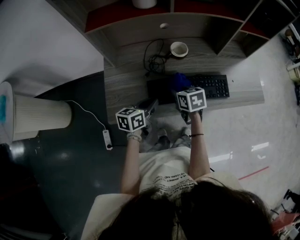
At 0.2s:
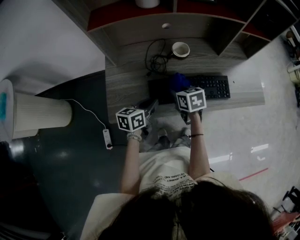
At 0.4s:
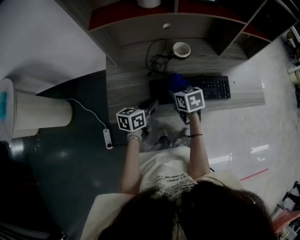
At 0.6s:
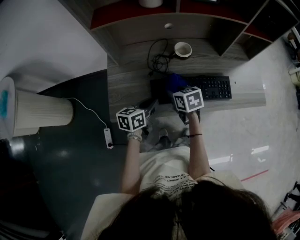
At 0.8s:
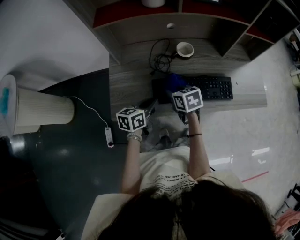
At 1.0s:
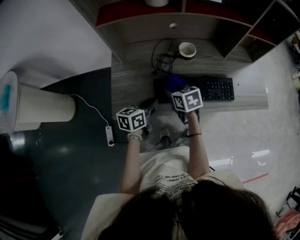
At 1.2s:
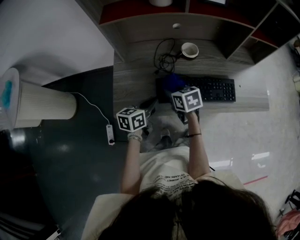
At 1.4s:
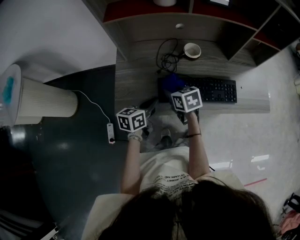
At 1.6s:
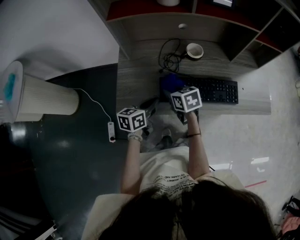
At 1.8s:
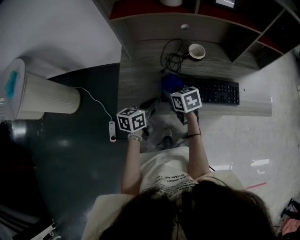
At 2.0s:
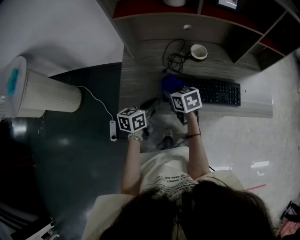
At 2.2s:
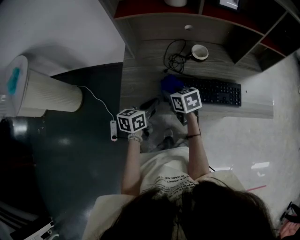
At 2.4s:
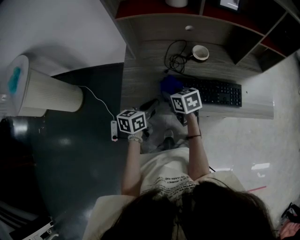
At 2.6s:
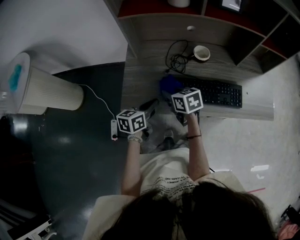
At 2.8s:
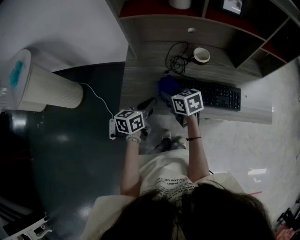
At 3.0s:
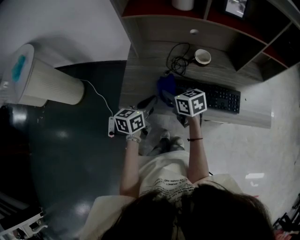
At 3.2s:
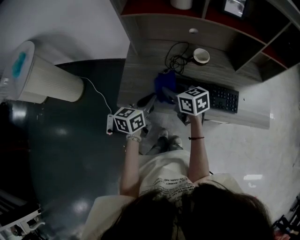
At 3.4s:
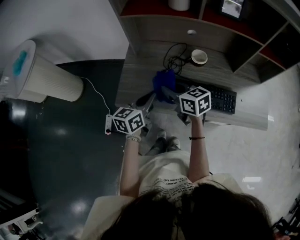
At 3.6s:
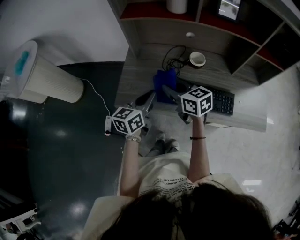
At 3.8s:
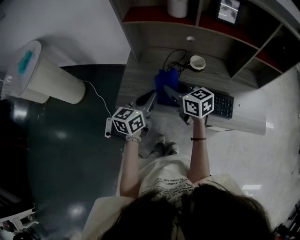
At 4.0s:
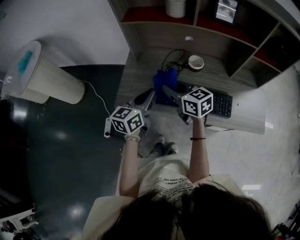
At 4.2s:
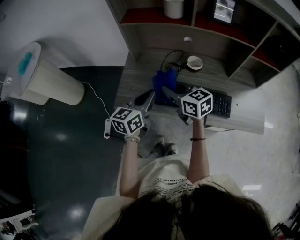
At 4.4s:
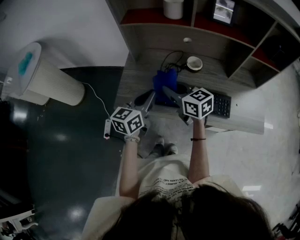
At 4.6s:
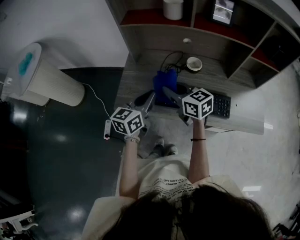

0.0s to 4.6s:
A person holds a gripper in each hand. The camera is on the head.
0.0s to 1.6s: The right gripper heads to the left, covering some 10 cm; the left gripper moves roughly 5 cm.
1.6s to 3.0s: The right gripper moves approximately 5 cm.
3.0s to 4.6s: The grippers both shift upward by roughly 10 cm.

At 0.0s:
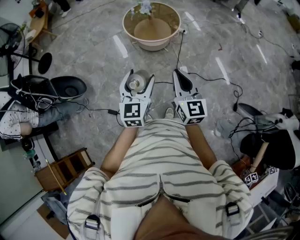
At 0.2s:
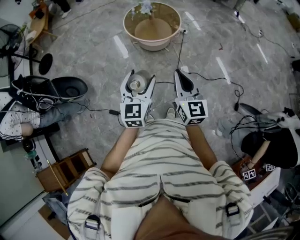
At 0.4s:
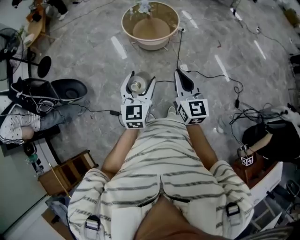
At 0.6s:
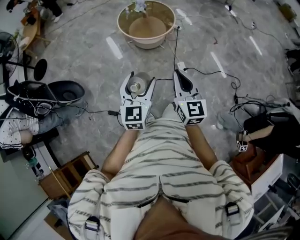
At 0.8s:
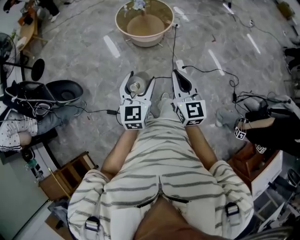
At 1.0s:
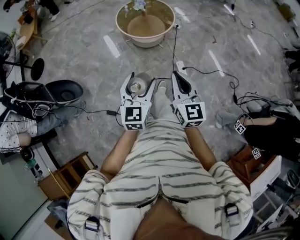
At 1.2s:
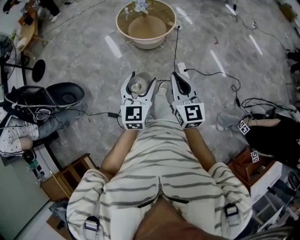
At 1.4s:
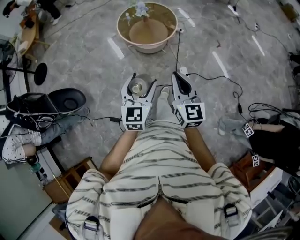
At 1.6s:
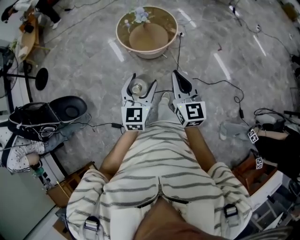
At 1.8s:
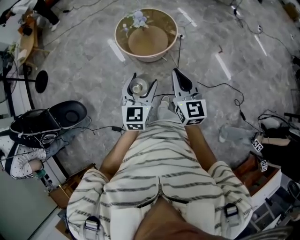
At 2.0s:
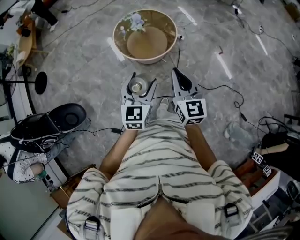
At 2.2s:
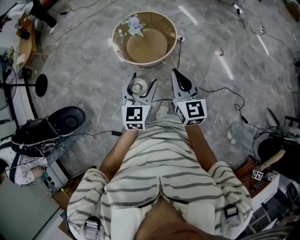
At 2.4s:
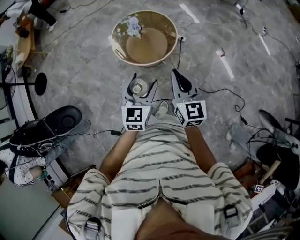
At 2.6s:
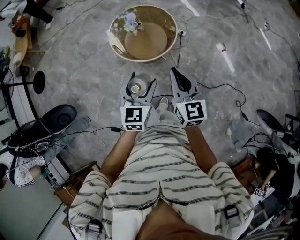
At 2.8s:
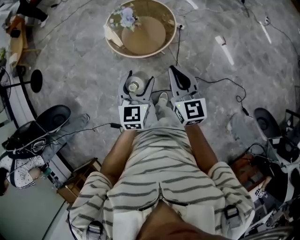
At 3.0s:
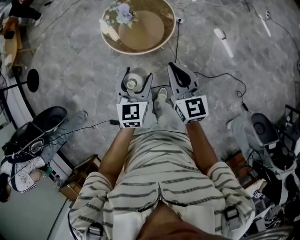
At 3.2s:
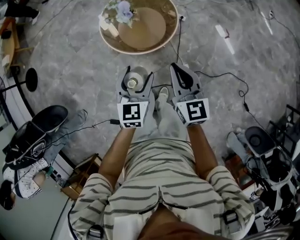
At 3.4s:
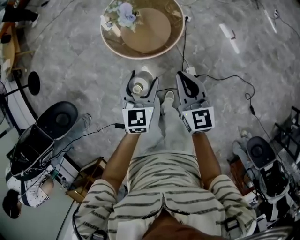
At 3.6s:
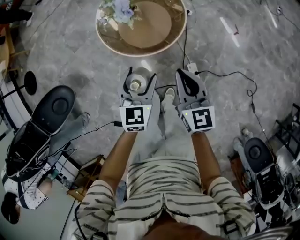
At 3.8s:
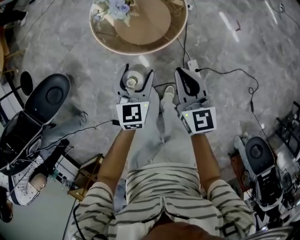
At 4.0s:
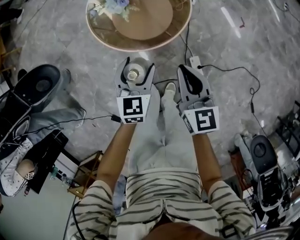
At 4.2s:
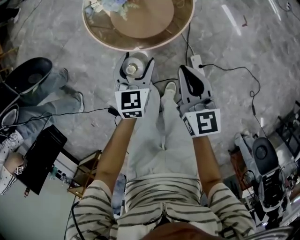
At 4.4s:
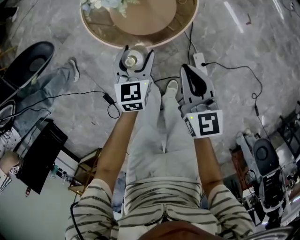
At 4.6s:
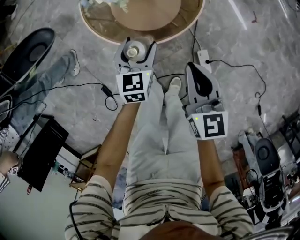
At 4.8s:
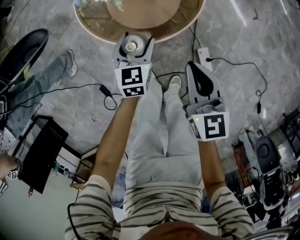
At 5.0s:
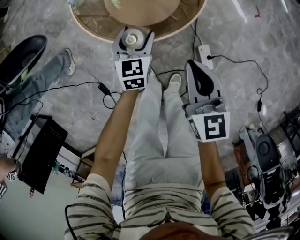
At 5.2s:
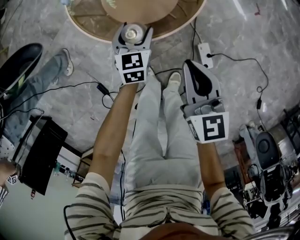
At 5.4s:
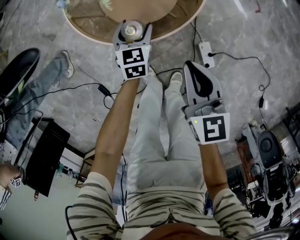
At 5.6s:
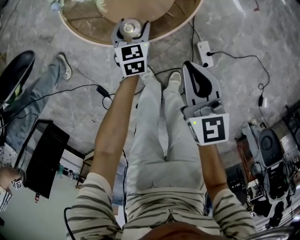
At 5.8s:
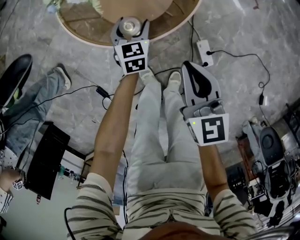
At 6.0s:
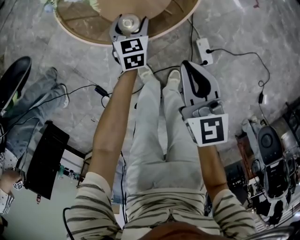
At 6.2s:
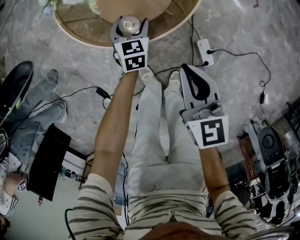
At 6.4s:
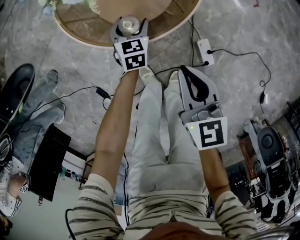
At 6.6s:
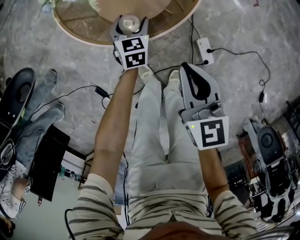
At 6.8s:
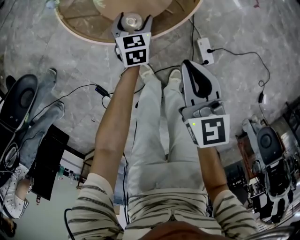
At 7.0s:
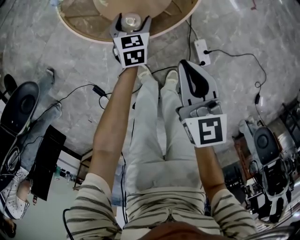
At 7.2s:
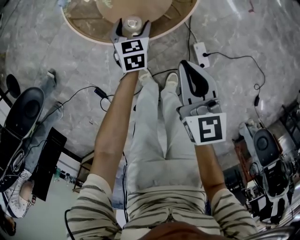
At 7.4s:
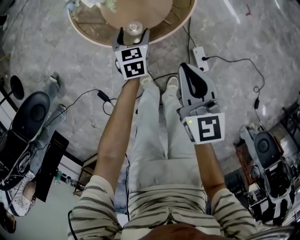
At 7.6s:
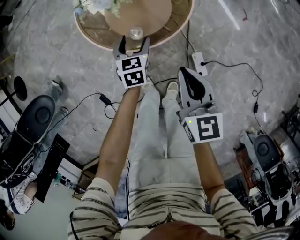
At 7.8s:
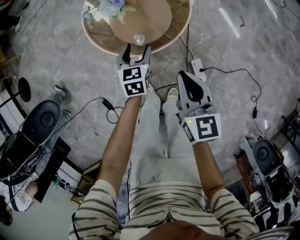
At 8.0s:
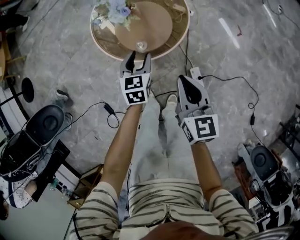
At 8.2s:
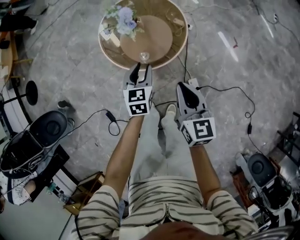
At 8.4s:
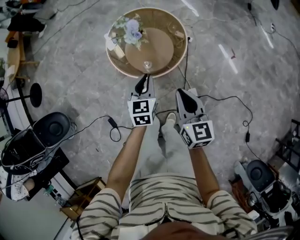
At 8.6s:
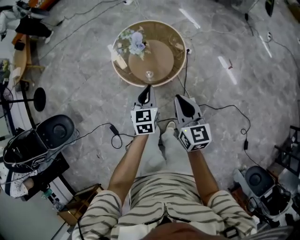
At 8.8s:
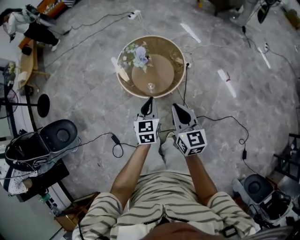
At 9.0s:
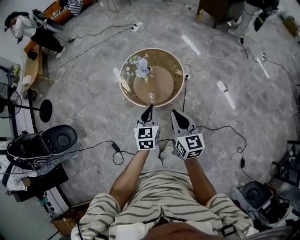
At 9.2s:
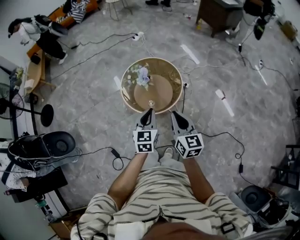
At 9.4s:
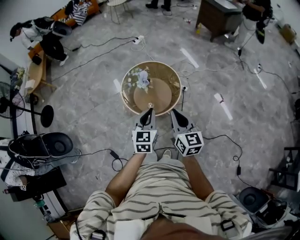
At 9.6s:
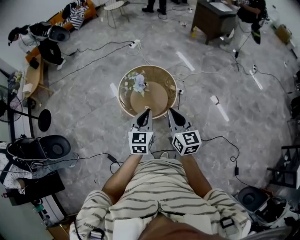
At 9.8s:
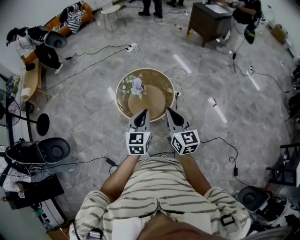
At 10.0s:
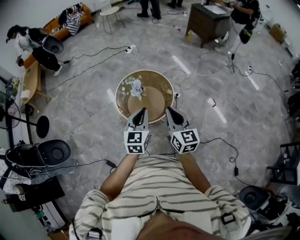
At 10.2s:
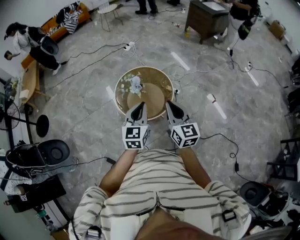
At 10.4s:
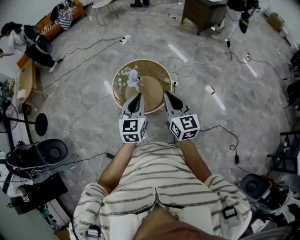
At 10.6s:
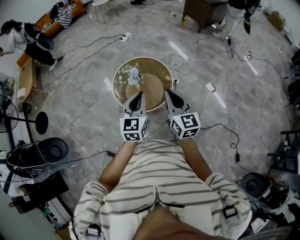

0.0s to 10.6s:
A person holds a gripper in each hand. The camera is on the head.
0.0s to 1.6s: Both grippers travel together forward, some 15 cm.
1.6s to 3.0s: Both grippers travel together forward, roughly 20 cm.
3.0s to 4.6s: The right gripper shifts some 25 cm downward. The left gripper goes roughly 35 cm downward and forward.
4.6s to 6.0s: The right gripper travels downward by about 5 cm. Meanwhile the left gripper goes about 20 cm downward and forward.
6.0s to 7.6s: The two grippers go approximately 10 cm upward.
7.6s to 9.0s: The left gripper moves upward and backward, some 40 cm, and closes up; the right gripper heads upward, covering some 25 cm.
9.0s to 10.6s: The left gripper moves upward, roughly 15 cm, while the right gripper travels upward and forward by about 10 cm.

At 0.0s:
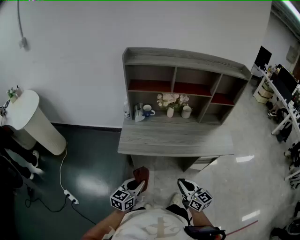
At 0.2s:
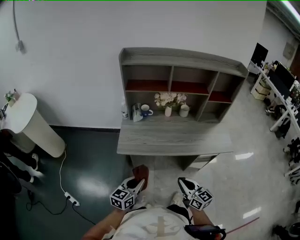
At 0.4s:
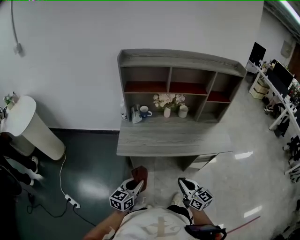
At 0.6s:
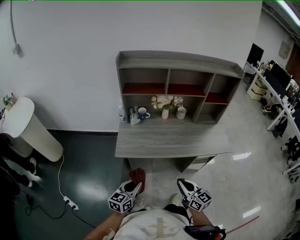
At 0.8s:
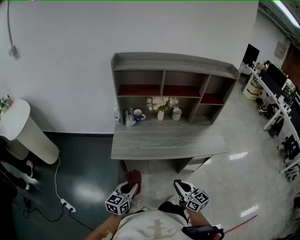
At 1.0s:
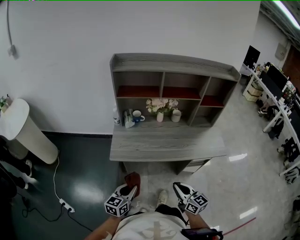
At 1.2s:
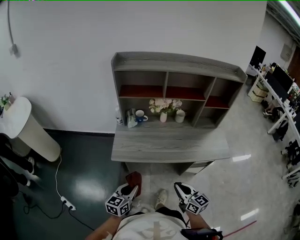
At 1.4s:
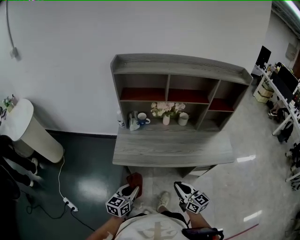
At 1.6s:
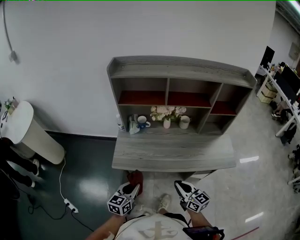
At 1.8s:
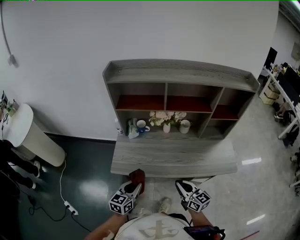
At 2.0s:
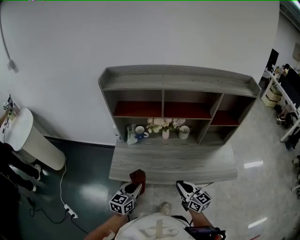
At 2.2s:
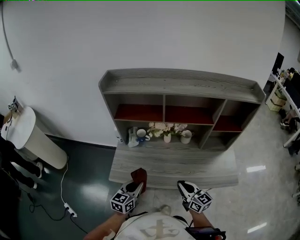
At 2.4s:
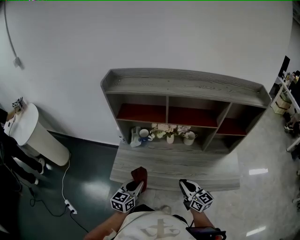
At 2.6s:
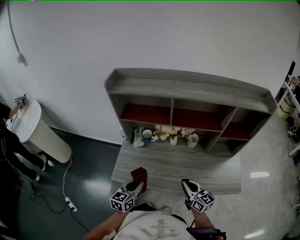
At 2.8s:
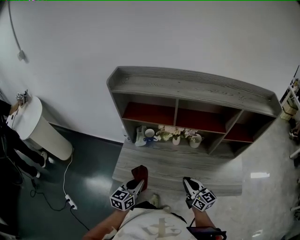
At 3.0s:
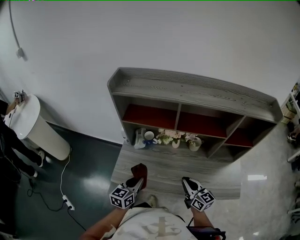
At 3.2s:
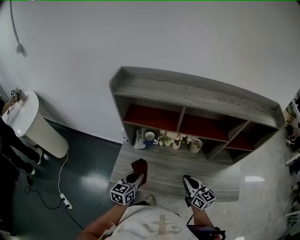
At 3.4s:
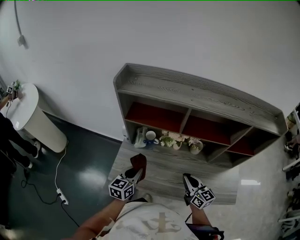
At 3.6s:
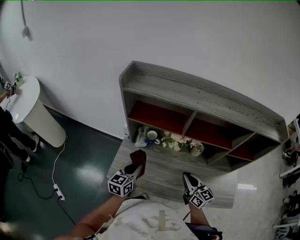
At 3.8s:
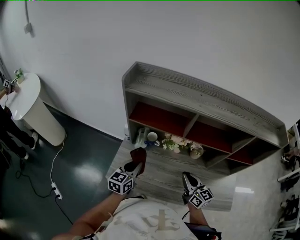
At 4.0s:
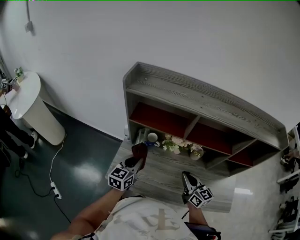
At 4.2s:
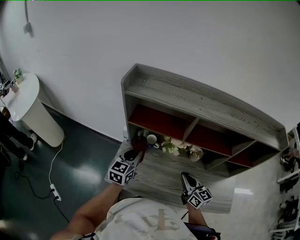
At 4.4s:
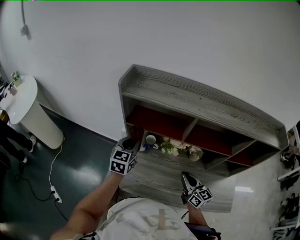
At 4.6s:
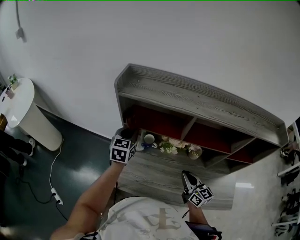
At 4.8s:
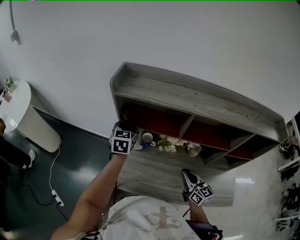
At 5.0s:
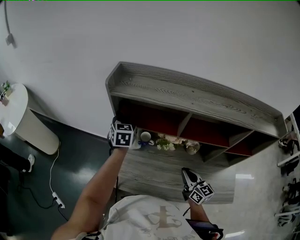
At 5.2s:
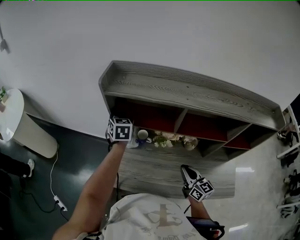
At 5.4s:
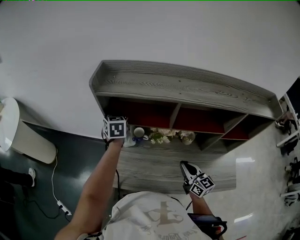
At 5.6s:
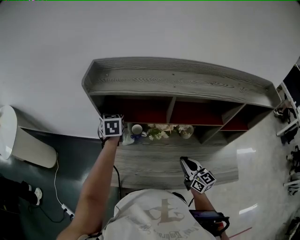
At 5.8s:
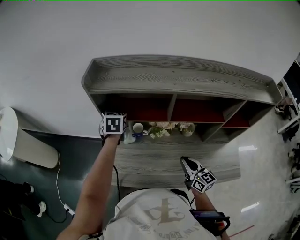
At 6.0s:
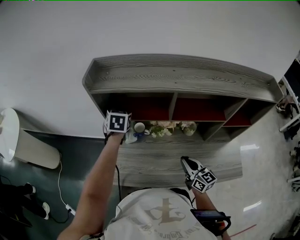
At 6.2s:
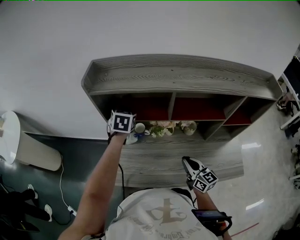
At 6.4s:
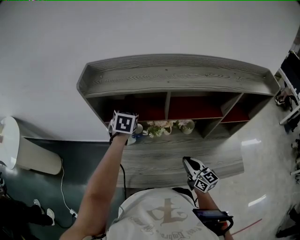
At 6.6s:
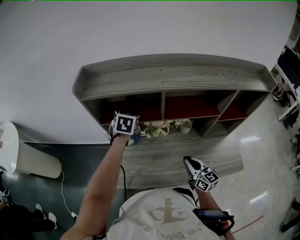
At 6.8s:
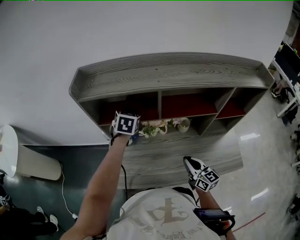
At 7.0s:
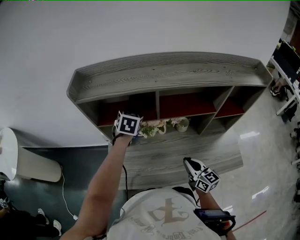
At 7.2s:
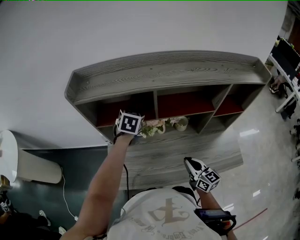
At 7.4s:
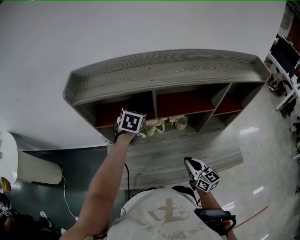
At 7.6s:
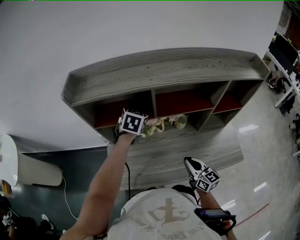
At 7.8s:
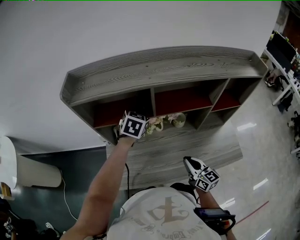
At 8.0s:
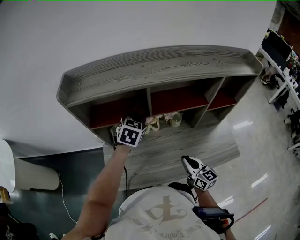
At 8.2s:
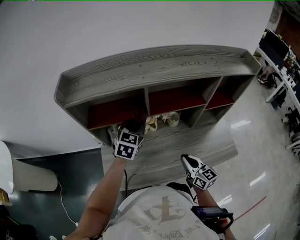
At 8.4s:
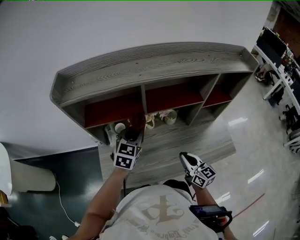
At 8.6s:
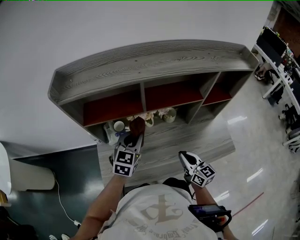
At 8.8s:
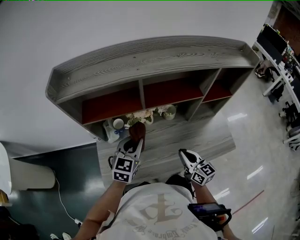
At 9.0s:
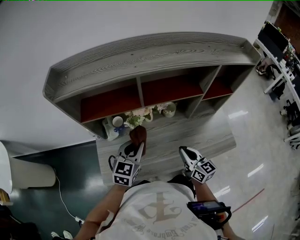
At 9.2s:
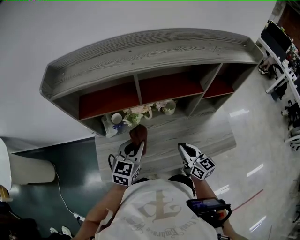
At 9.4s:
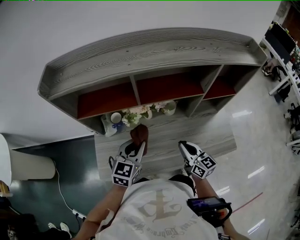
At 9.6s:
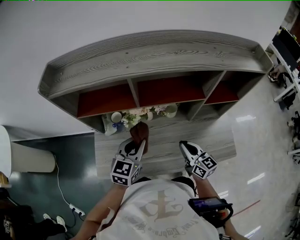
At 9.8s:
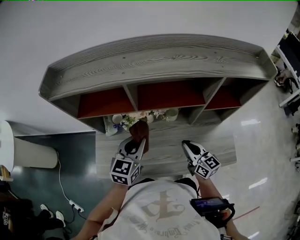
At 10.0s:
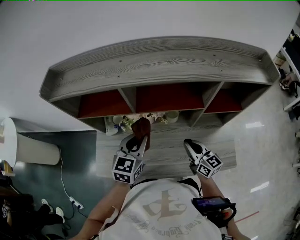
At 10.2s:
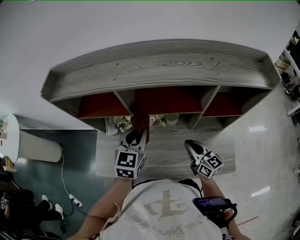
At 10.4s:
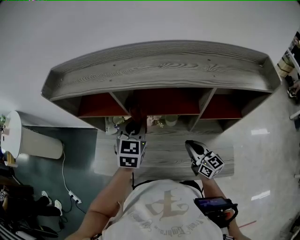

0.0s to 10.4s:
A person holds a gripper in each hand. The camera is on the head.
0.0s to 1.4s: Both grippers move forward, some 5 cm.
1.4s to 3.0s: Both grippers move forward, about 25 cm.
3.0s to 4.4s: The right gripper moves forward, some 10 cm. Meanwhile the left gripper travels forward and upward by approximately 25 cm.
4.4s to 6.0s: The left gripper goes approximately 10 cm forward.
6.0s to 7.4s: The left gripper shifts about 15 cm to the right; the right gripper shifts by approximately 5 cm.
7.4s to 9.0s: The left gripper heads backward, covering approximately 20 cm, and rotates some 20 degrees.
9.0s to 10.4s: The right gripper travels to the right and forward by some 15 cm, while the left gripper goes about 20 cm to the right, forward and upward, and turns by some 30 degrees.
